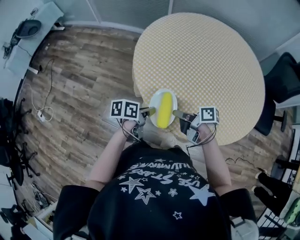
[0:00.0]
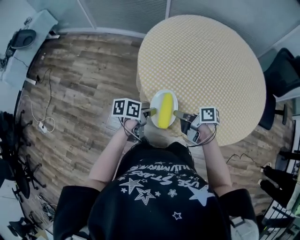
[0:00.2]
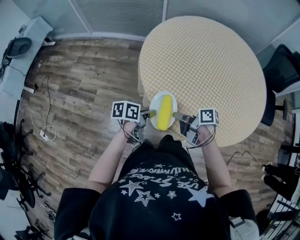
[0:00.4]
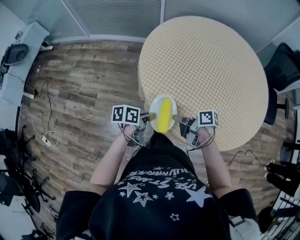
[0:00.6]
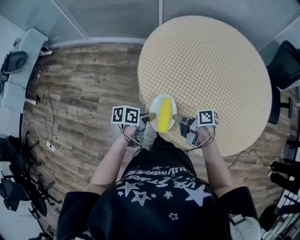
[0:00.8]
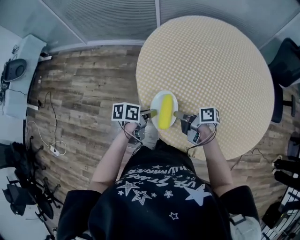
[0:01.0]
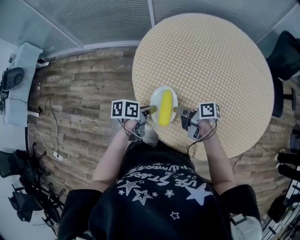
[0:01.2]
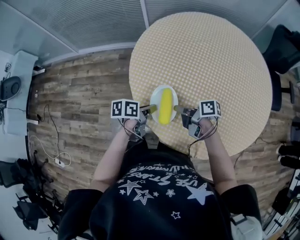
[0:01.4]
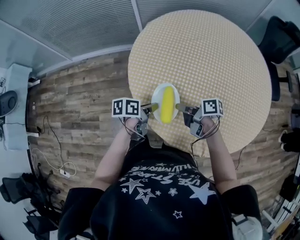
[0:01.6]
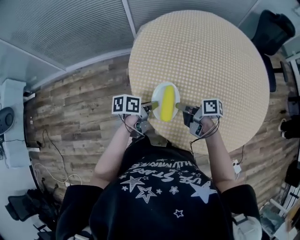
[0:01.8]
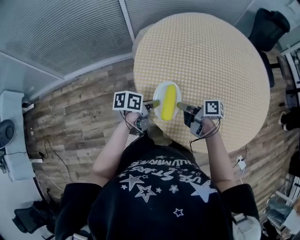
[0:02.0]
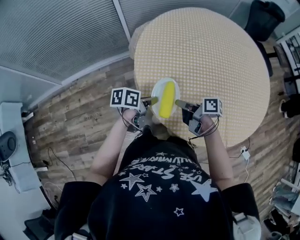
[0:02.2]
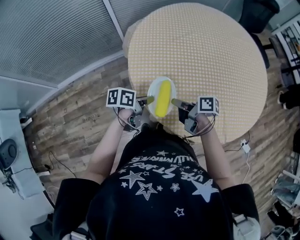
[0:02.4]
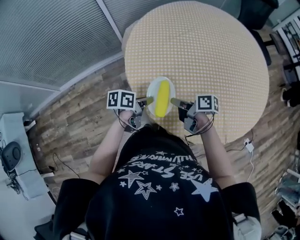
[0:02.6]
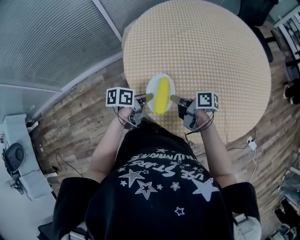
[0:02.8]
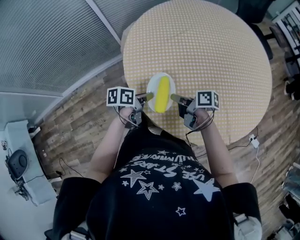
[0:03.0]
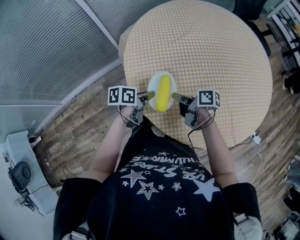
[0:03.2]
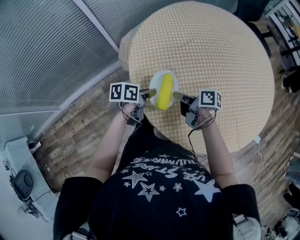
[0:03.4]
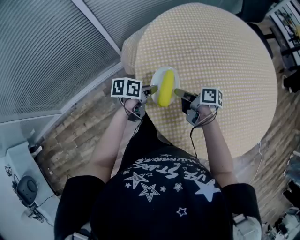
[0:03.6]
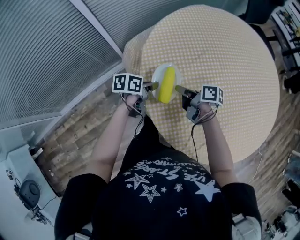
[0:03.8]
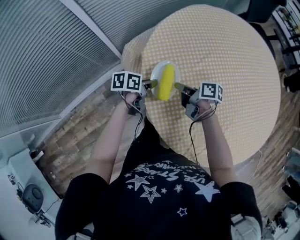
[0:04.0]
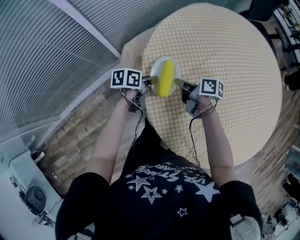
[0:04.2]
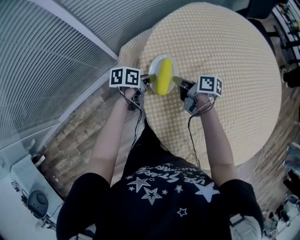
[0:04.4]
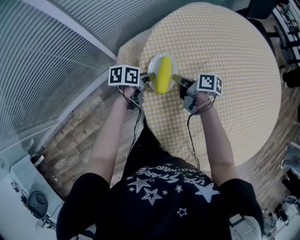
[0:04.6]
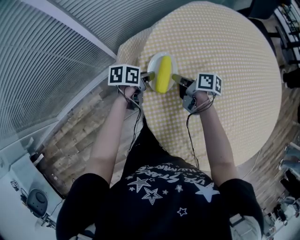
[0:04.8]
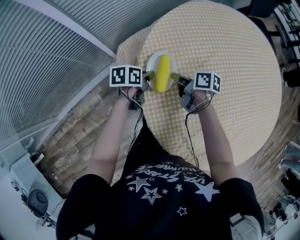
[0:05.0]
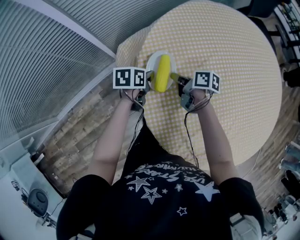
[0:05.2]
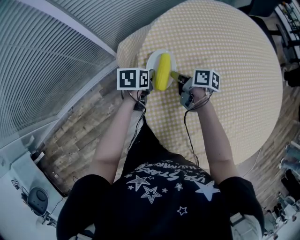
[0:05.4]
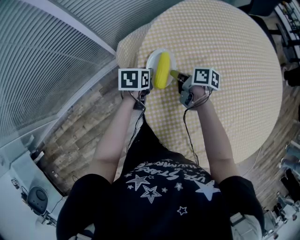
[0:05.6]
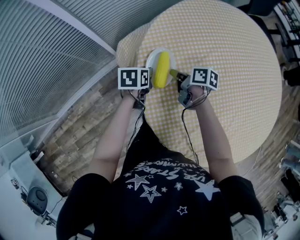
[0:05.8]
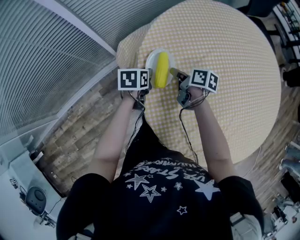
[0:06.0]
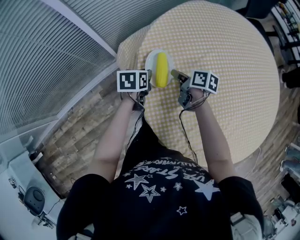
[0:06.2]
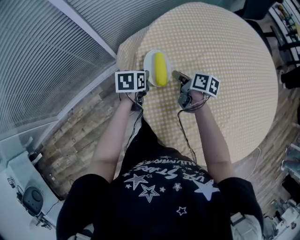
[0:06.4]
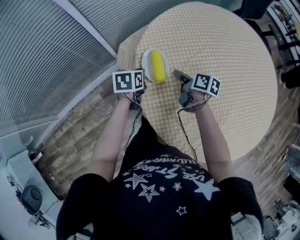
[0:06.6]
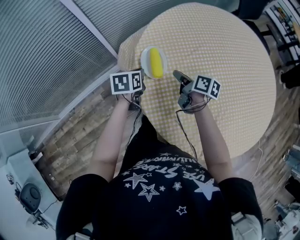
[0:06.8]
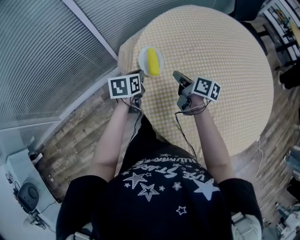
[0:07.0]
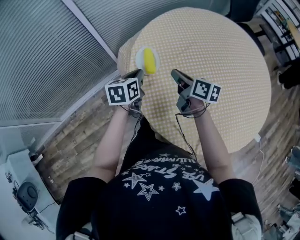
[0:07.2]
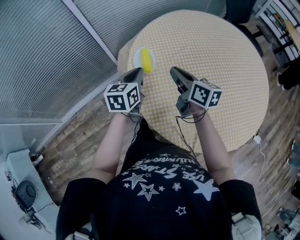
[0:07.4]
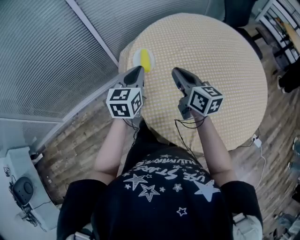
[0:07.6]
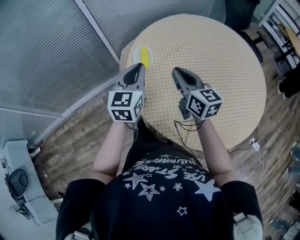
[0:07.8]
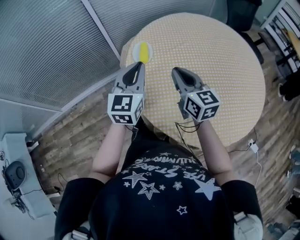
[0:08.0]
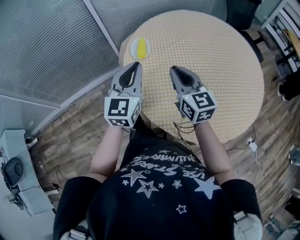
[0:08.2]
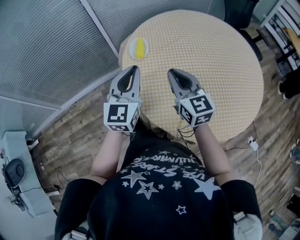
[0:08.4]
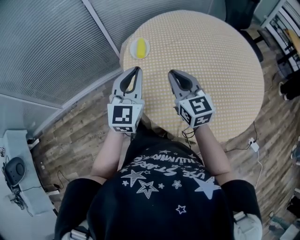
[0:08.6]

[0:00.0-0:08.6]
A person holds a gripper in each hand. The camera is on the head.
0:00.0 to 0:01.4: The left gripper moves roughly 20 cm.
0:01.4 to 0:02.8: The left gripper ends up roughly 15 cm from where it was, and rotates about 30 degrees.
0:02.8 to 0:04.4: The left gripper moves roughly 35 cm.
0:04.4 to 0:05.8: The left gripper rotates roughly 20 degrees.
0:05.8 to 0:07.2: The left gripper travels upward by some 15 cm, and swivels roughly 20 degrees.
0:07.2 to 0:08.6: The left gripper ends up roughly 25 cm from where it was, and tips its fingers upward by some 30 degrees.

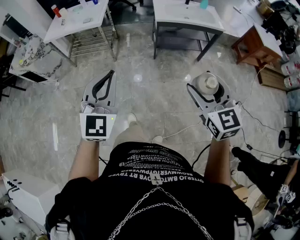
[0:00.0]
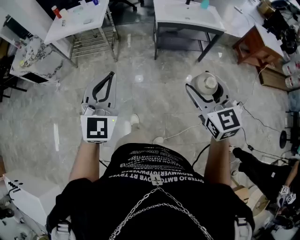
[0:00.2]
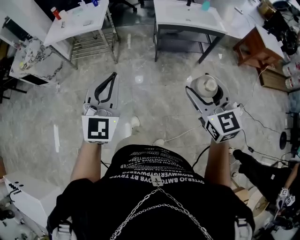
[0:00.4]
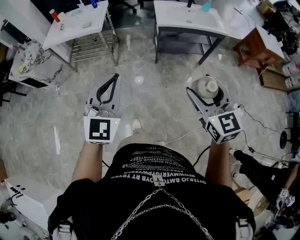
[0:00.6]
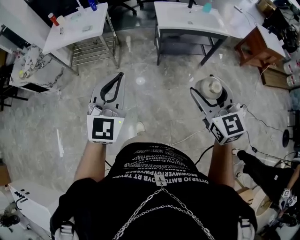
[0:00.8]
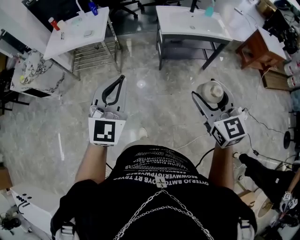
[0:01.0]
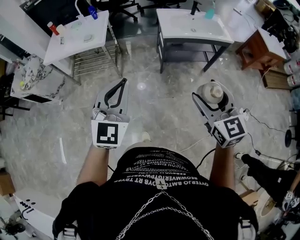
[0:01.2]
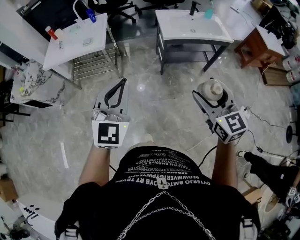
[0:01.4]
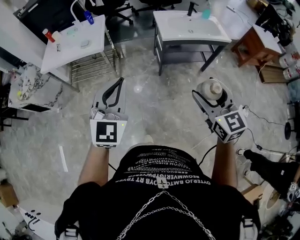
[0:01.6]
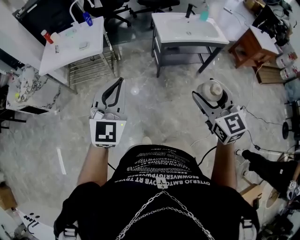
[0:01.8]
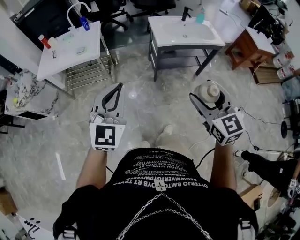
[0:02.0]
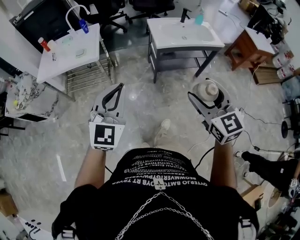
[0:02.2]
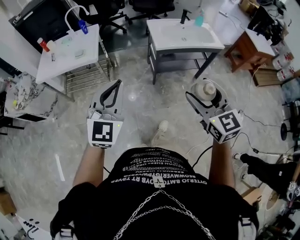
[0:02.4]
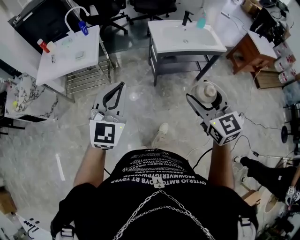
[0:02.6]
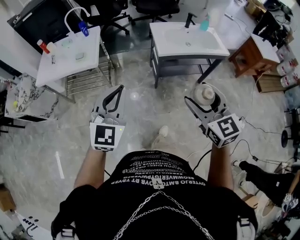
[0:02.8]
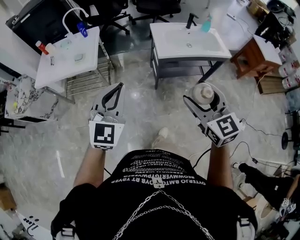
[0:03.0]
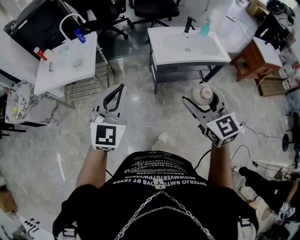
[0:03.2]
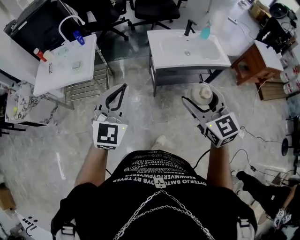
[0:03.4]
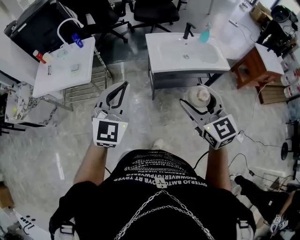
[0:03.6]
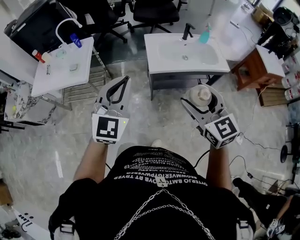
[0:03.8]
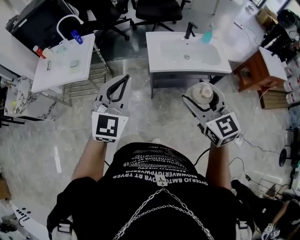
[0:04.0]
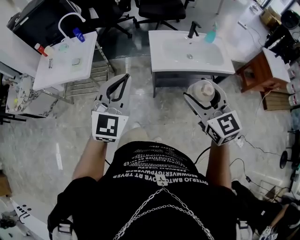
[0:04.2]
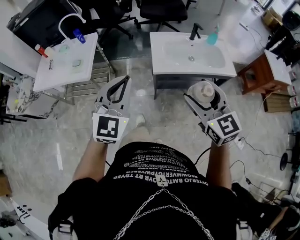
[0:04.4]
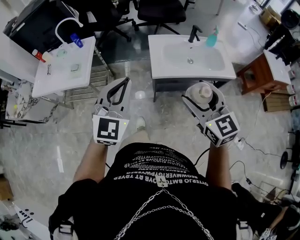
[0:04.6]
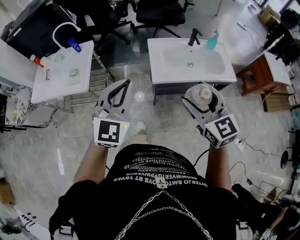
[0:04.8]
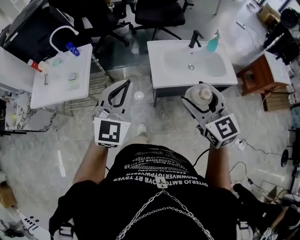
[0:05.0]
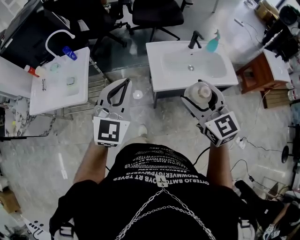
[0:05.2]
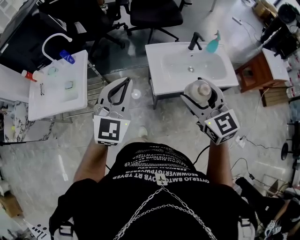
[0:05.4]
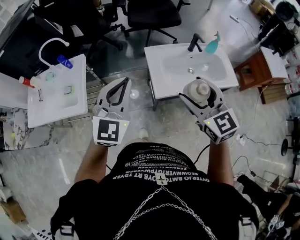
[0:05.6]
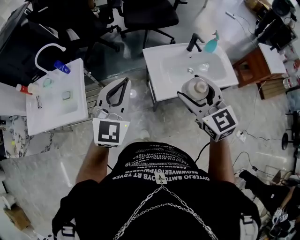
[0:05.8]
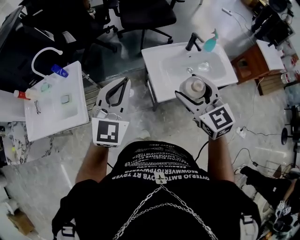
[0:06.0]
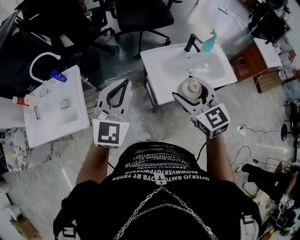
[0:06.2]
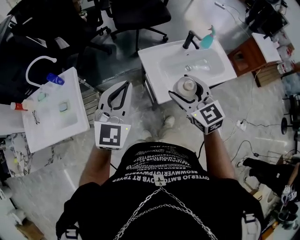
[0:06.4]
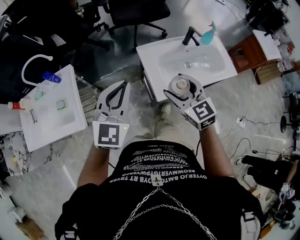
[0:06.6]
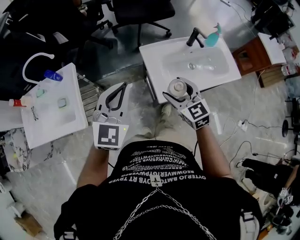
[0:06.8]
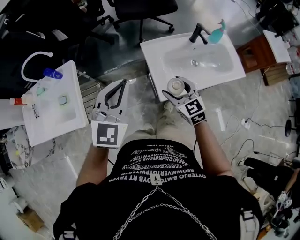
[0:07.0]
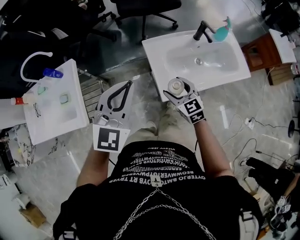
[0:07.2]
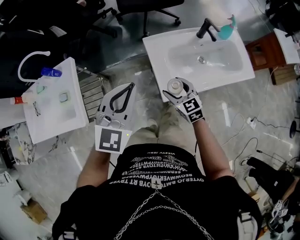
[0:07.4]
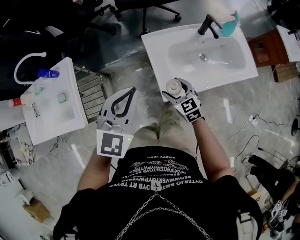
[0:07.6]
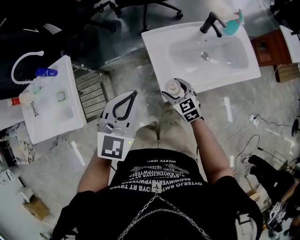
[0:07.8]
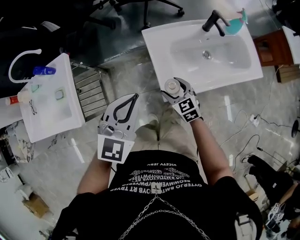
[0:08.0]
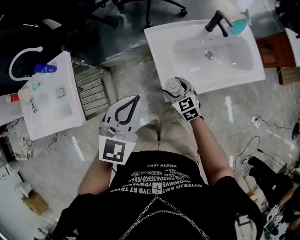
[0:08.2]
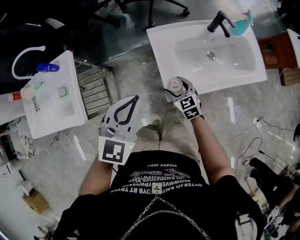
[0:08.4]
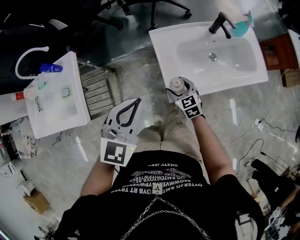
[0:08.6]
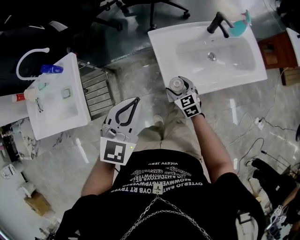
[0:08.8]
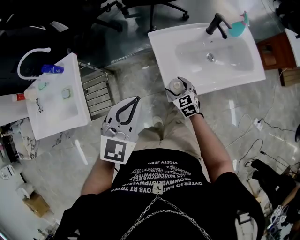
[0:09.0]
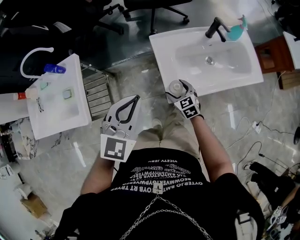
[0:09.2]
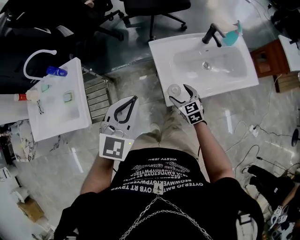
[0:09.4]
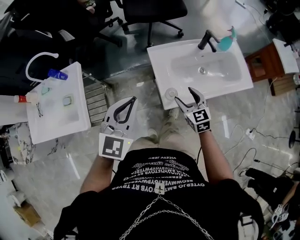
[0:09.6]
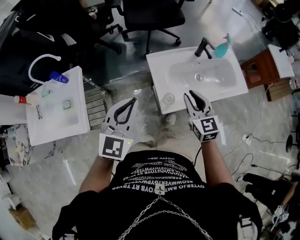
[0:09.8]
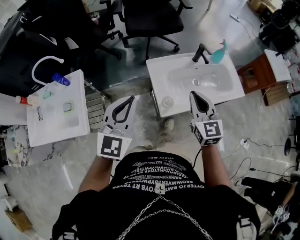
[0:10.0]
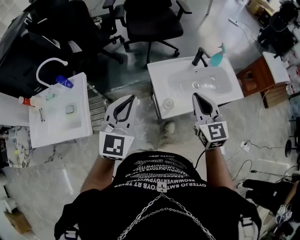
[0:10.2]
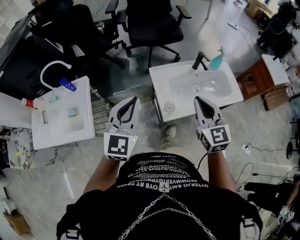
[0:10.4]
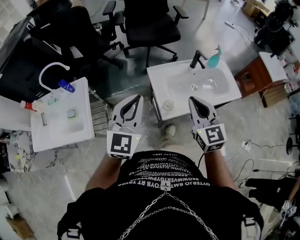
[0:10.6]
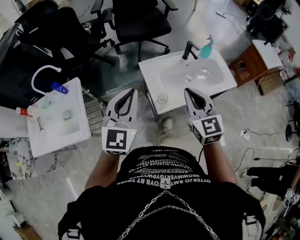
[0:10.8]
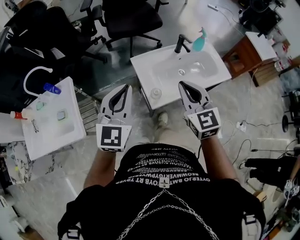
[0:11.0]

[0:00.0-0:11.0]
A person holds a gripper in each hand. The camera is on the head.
0:00.0 to 0:01.6: Both grippers travel together forward and to the left, some 25 cm.
0:01.6 to 0:03.2: The left gripper is displaced forward and to the right by roughly 20 cm, while the right gripper goes some 20 cm forward.
0:03.2 to 0:04.8: Both grippers move forward and to the right, about 20 cm.
0:04.8 to 0:06.2: The left gripper heads forward, covering some 25 cm. The right gripper shifts about 25 cm forward and to the left.
0:06.2 to 0:07.8: The right gripper moves downward, some 35 cm, while the left gripper is displaced downward by some 15 cm.
0:07.8 to 0:09.4: The grippers move only a little.
0:09.4 to 0:11.0: The right gripper travels upward by some 35 cm, swivels approximately 30 degrees, and closes up; the left gripper goes approximately 10 cm upward.

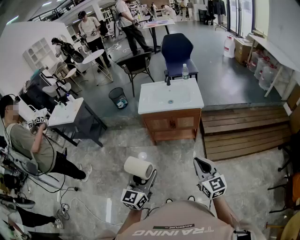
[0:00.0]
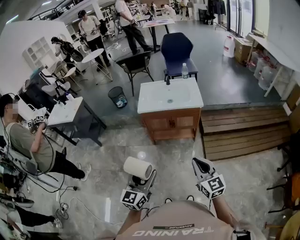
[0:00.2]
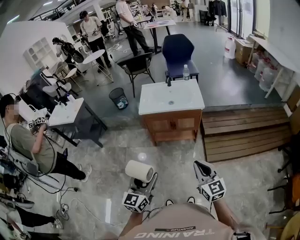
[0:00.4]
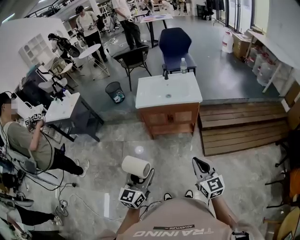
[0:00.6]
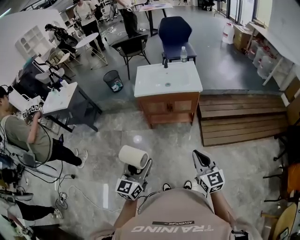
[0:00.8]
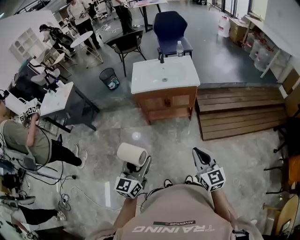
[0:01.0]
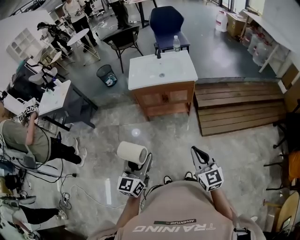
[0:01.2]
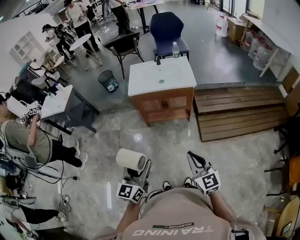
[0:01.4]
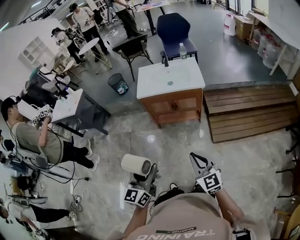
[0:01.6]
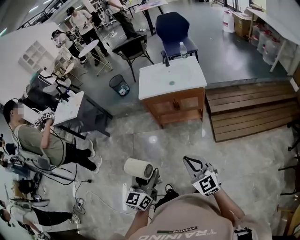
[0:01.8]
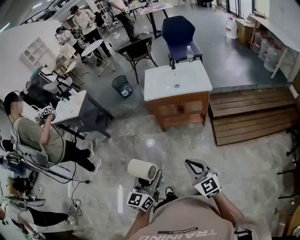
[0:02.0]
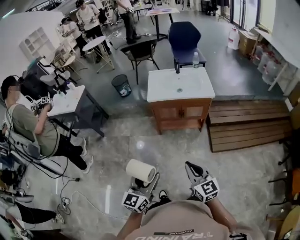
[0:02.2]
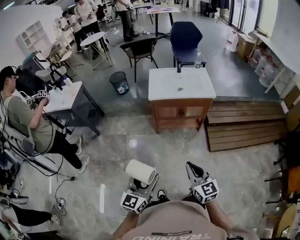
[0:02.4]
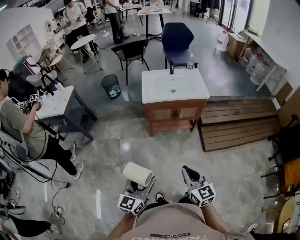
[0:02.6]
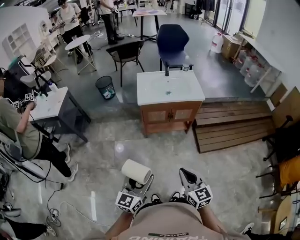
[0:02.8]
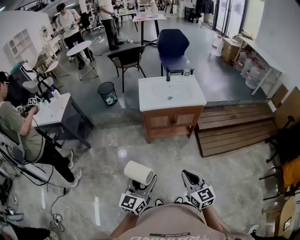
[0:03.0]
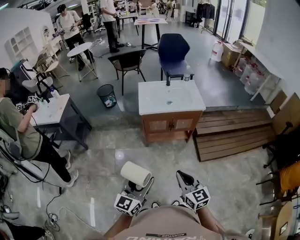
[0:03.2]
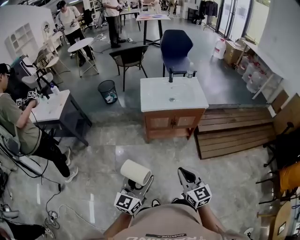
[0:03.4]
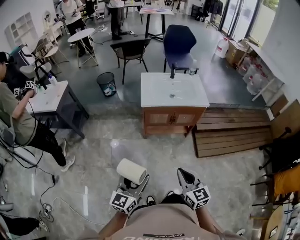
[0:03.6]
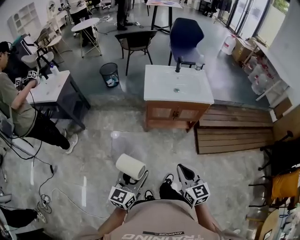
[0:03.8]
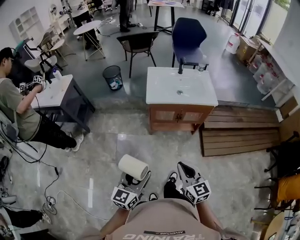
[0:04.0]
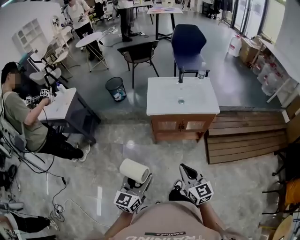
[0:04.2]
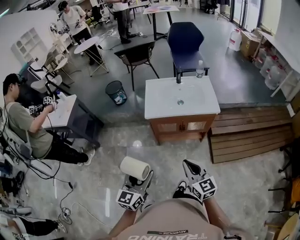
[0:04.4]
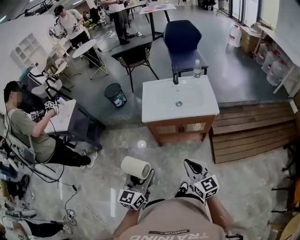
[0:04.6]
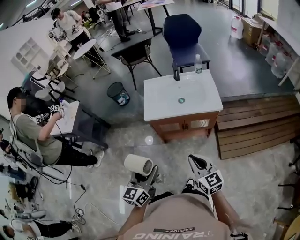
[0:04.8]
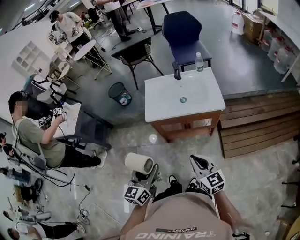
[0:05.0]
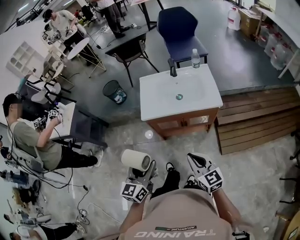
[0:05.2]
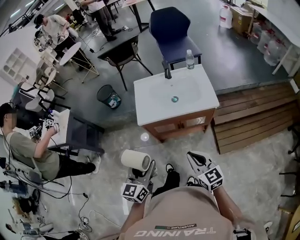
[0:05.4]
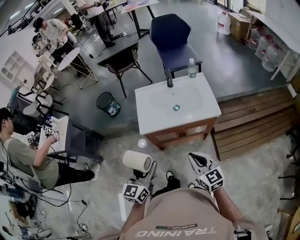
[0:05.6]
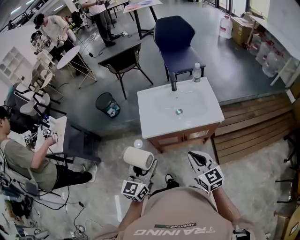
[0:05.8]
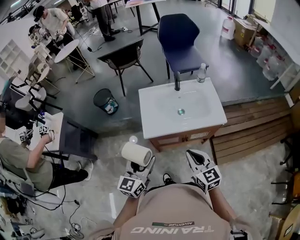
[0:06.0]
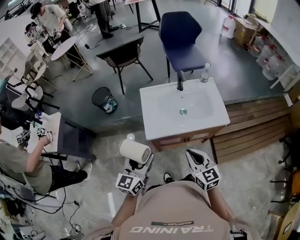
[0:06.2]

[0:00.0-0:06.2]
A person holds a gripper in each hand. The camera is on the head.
0:00.0 to 0:01.6: The grippers stay close to where they were, moving slightly.
0:01.6 to 0:03.2: The grippers both shift to the left by some 20 cm.
0:03.2 to 0:04.6: The right gripper shifts some 20 cm forward and to the right. Meanwhile the left gripper shifts roughly 15 cm forward.
0:04.6 to 0:06.2: The two grippers go about 25 cm forward.
